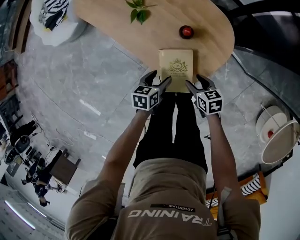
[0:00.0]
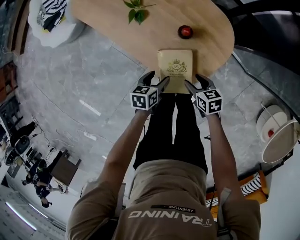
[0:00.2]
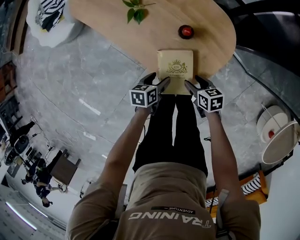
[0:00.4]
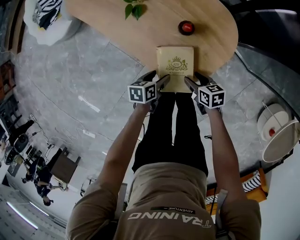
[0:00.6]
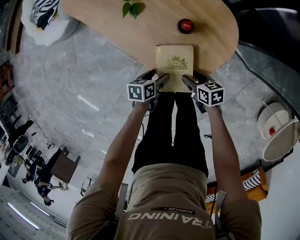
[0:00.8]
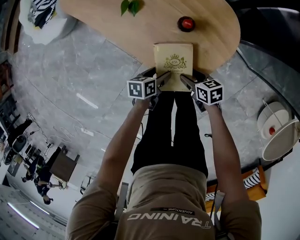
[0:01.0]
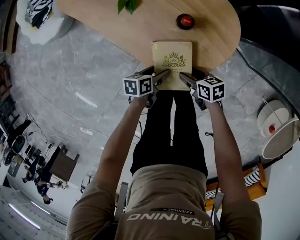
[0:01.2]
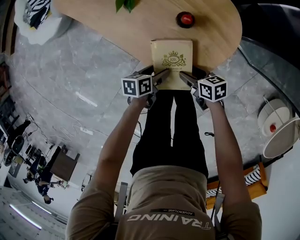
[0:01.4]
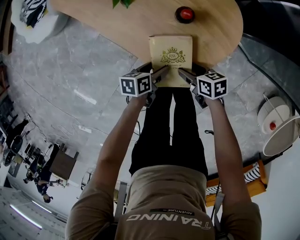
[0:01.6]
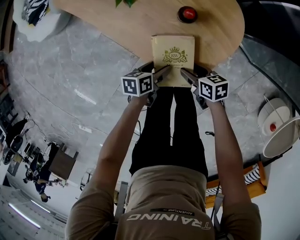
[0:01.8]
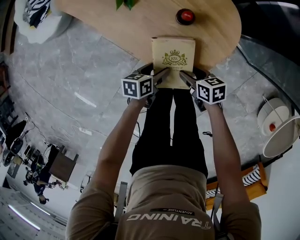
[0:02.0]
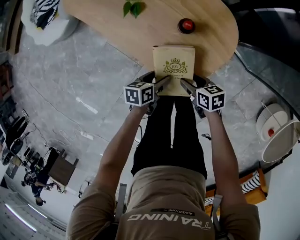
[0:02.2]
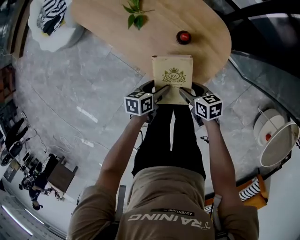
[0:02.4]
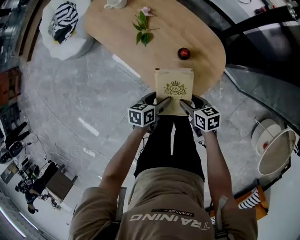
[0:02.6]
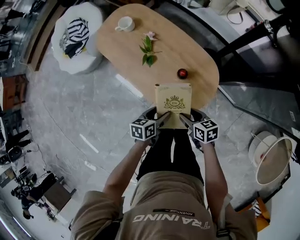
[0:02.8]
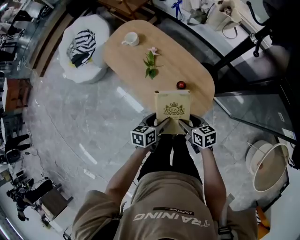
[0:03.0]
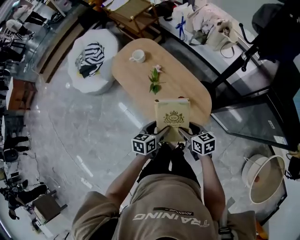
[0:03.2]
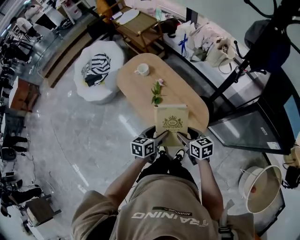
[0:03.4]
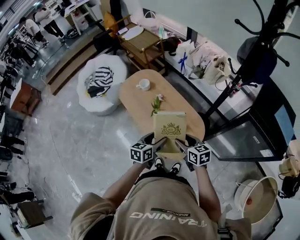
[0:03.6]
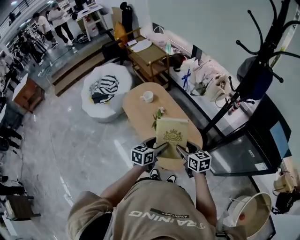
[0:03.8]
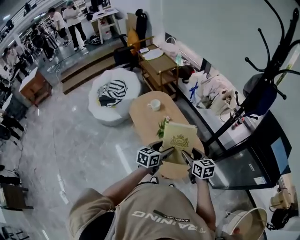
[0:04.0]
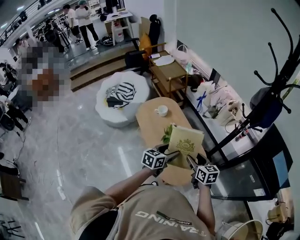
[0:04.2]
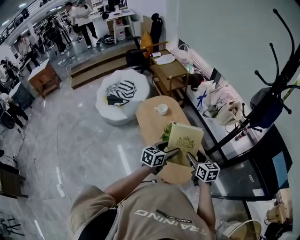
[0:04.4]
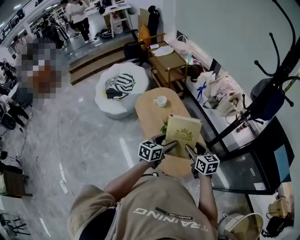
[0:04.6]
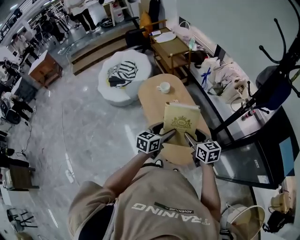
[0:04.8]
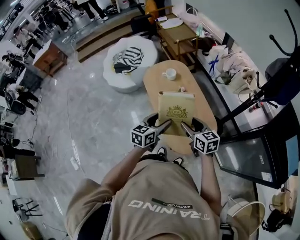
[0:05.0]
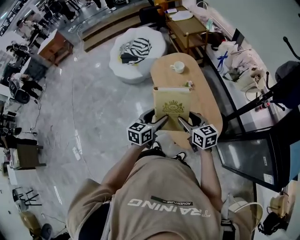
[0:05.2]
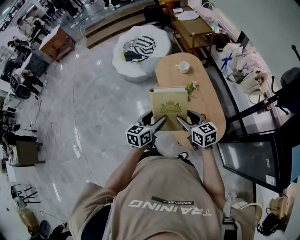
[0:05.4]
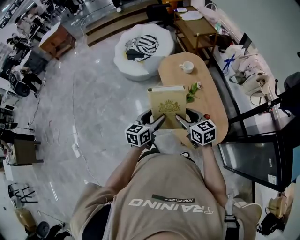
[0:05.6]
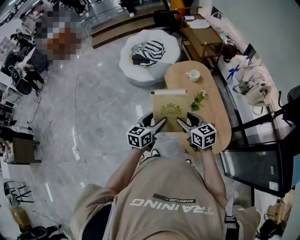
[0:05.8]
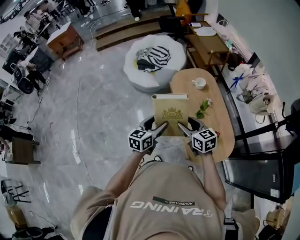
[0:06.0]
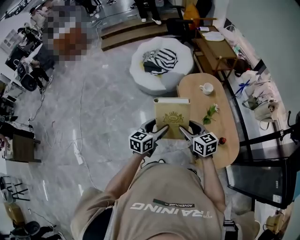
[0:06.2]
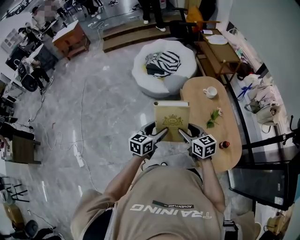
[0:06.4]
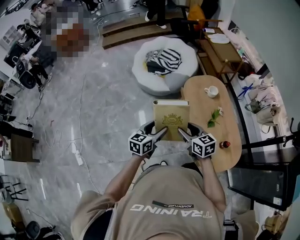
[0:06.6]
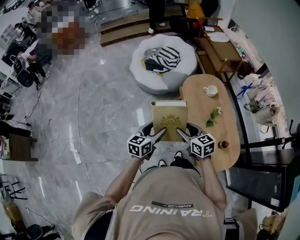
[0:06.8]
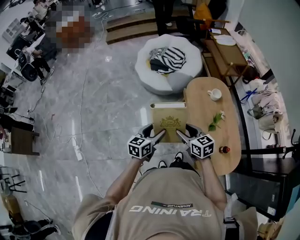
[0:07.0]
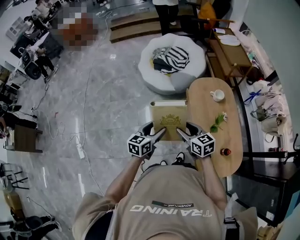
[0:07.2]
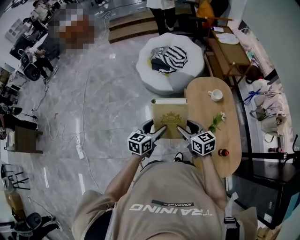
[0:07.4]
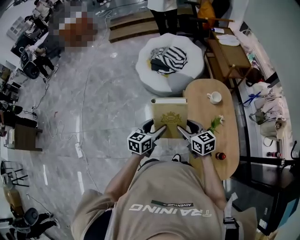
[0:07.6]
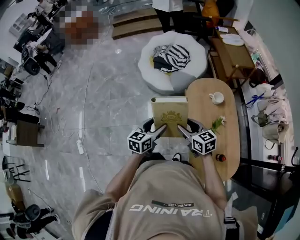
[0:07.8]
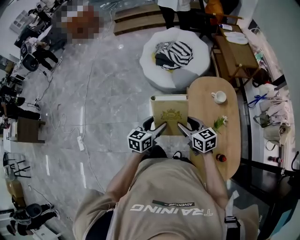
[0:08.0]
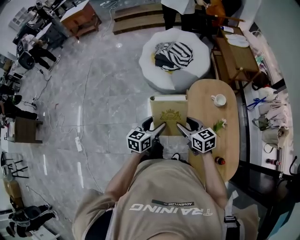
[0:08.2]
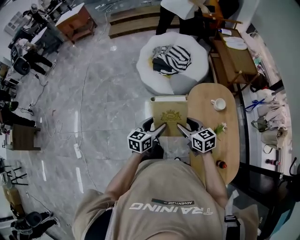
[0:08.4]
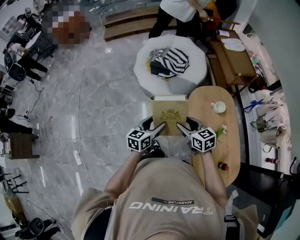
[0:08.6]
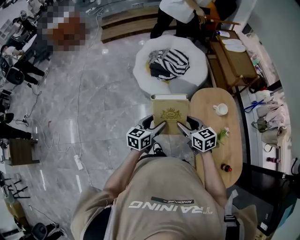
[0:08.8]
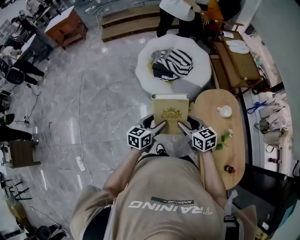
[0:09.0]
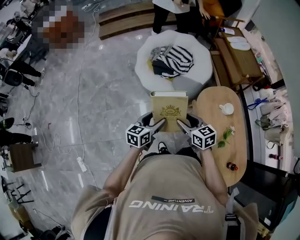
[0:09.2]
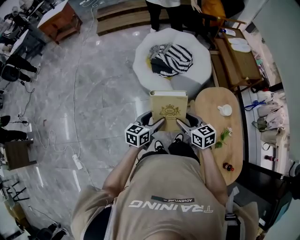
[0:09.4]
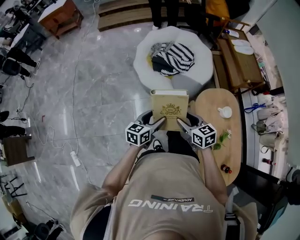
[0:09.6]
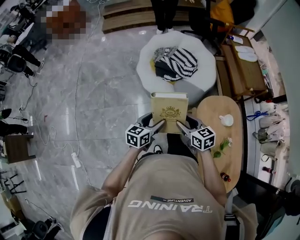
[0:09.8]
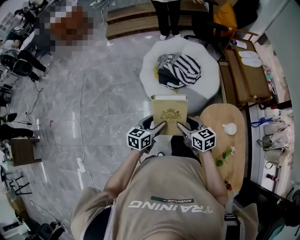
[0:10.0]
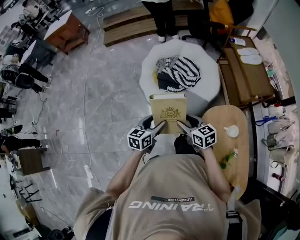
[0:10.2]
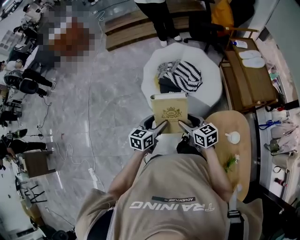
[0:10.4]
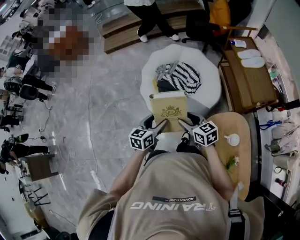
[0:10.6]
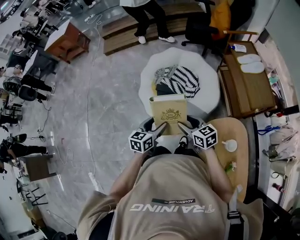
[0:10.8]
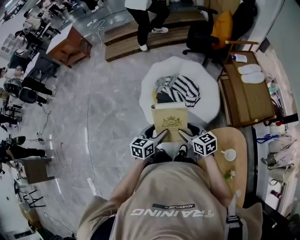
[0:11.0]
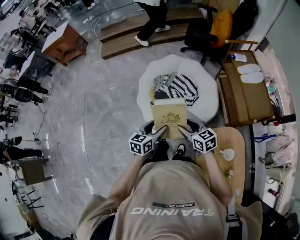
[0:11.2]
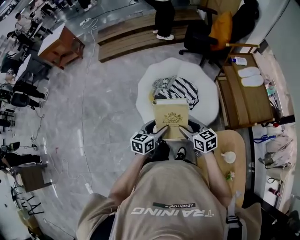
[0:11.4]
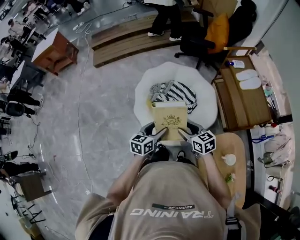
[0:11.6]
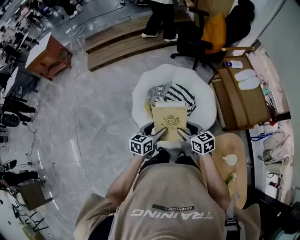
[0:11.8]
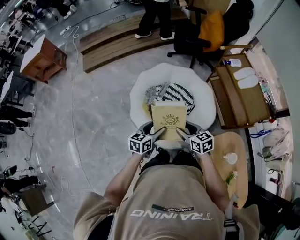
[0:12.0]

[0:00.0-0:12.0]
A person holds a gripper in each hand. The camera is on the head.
0:00.0 to 0:01.6: The grippers both shift downward by approximately 5 cm.
0:01.6 to 0:03.0: Both grippers travel together upward, roughly 25 cm. The right gripper swivels about 20 degrees. Meanwhile the left gripper swivels some 20 degrees.
0:03.0 to 0:04.4: The grippers both shift upward by roughly 20 cm. The left gripper rotates approximately 20 degrees. The right gripper swivels about 20 degrees.
0:04.4 to 0:06.0: The right gripper moves some 30 cm, and rotates some 30 degrees. Meanwhile the left gripper ends up roughly 30 cm from where it was, and changes its angle by approximately 30 degrees.
0:06.0 to 0:07.6: The left gripper goes approximately 15 cm forward and to the left, while the right gripper is displaced forward by about 15 cm.
0:07.6 to 0:09.0: The two grippers go about 25 cm forward and to the left.
0:09.0 to 0:10.4: The grippers both shift forward by some 25 cm.
0:10.4 to 0:12.0: The grippers both shift forward by about 25 cm.

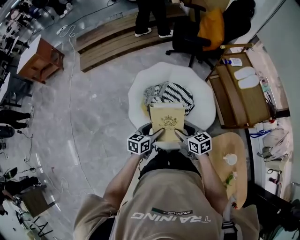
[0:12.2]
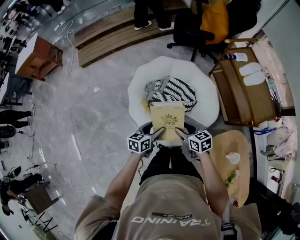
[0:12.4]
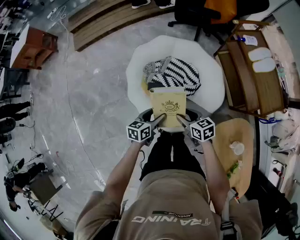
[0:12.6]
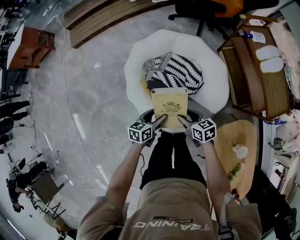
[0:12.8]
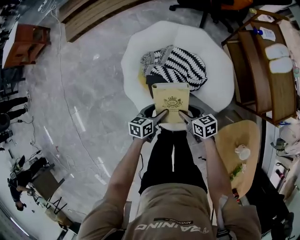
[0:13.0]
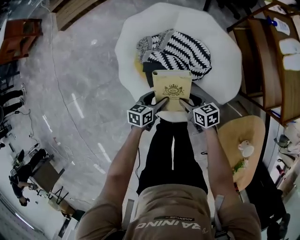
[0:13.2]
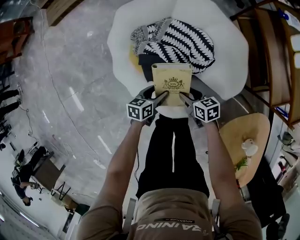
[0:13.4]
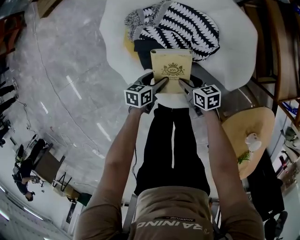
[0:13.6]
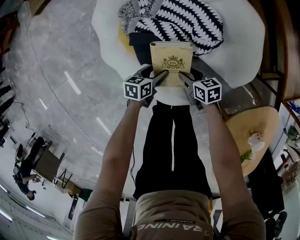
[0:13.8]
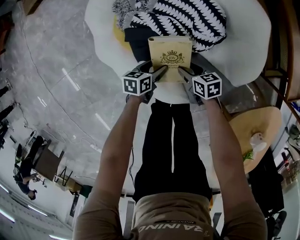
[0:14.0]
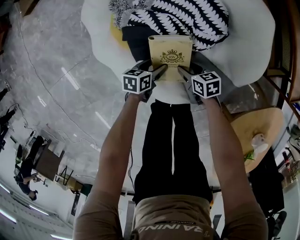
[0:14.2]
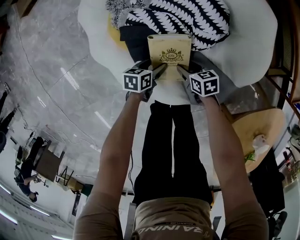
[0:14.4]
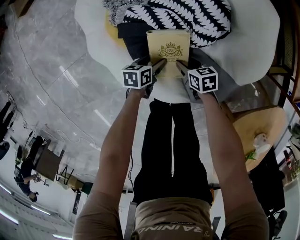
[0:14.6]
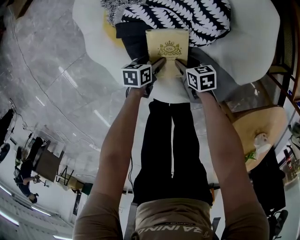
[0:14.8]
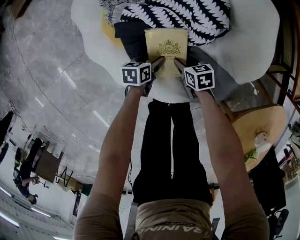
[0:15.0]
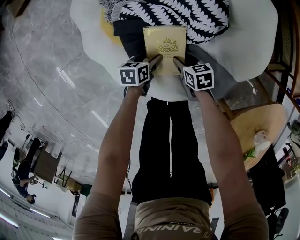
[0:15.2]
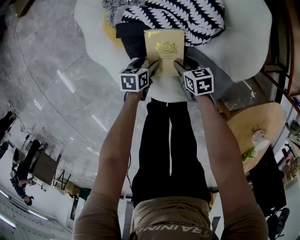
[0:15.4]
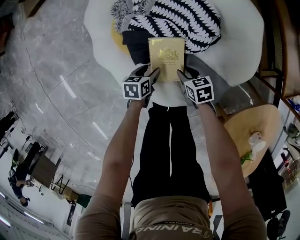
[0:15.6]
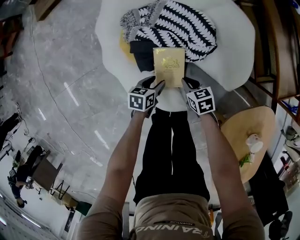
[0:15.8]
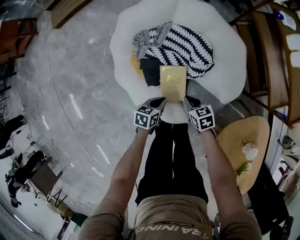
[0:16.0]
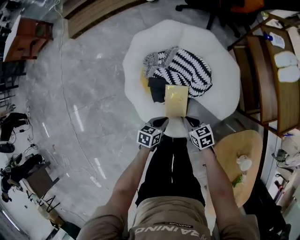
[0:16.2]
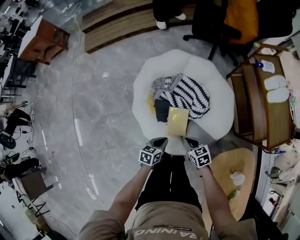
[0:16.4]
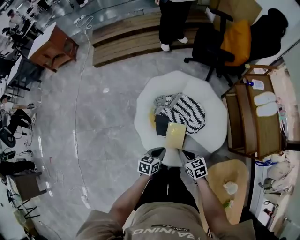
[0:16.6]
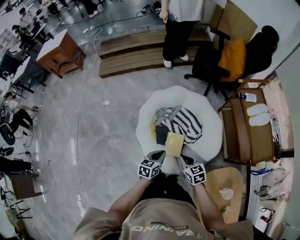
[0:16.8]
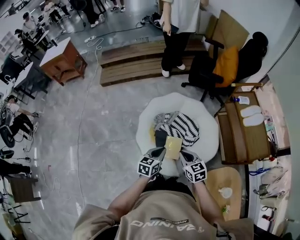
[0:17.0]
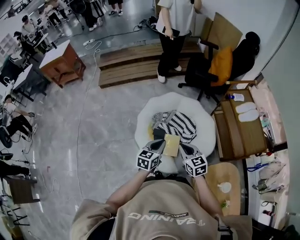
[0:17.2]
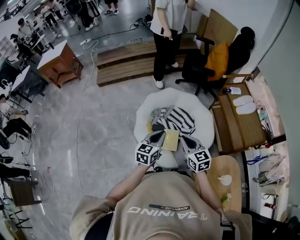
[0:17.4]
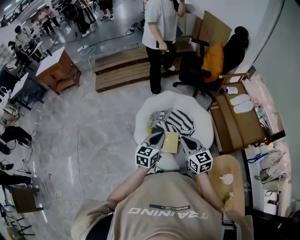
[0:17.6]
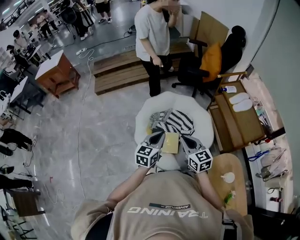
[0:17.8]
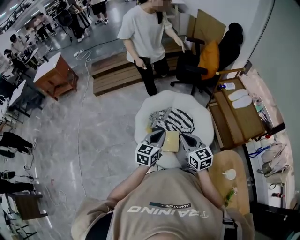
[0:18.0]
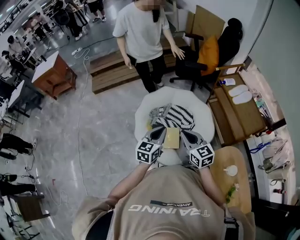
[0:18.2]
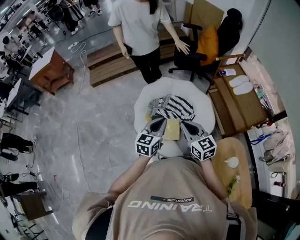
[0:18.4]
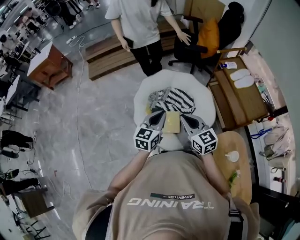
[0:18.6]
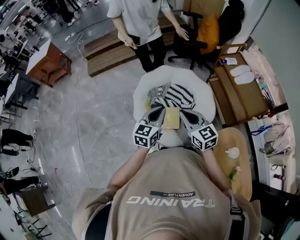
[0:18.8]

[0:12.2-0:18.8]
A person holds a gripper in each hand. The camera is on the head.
0:12.2 to 0:13.8: The two grippers go about 40 cm downward. The right gripper rotates some 20 degrees. The left gripper swivels some 30 degrees.
0:13.8 to 0:15.4: The grippers both shift downward by approximately 10 cm.
0:15.4 to 0:17.2: Both grippers move upward, approximately 60 cm. The left gripper angles its fingers upward, by approximately 30 degrees, and closes its fingers; the right gripper changes its angle by approximately 40 degrees, and closes its fingers.
0:17.2 to 0:18.8: Both grippers travel together upward, roughly 10 cm.

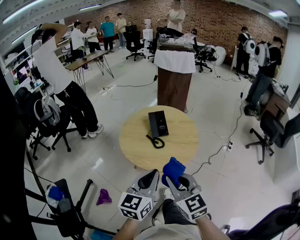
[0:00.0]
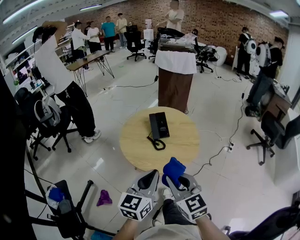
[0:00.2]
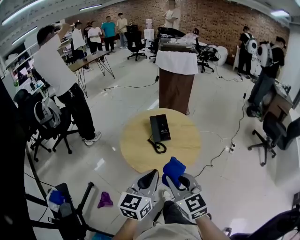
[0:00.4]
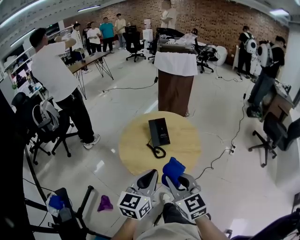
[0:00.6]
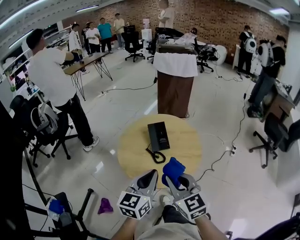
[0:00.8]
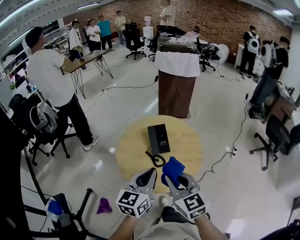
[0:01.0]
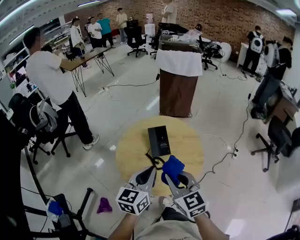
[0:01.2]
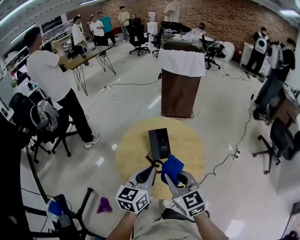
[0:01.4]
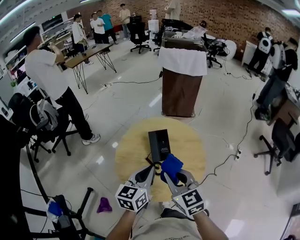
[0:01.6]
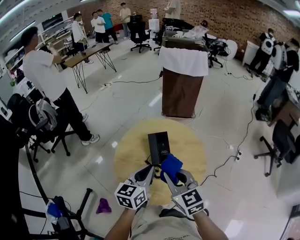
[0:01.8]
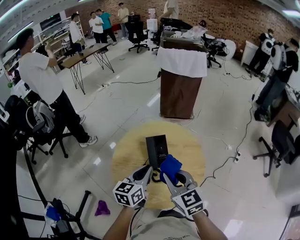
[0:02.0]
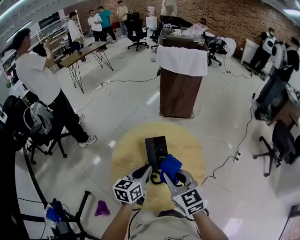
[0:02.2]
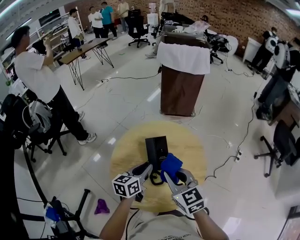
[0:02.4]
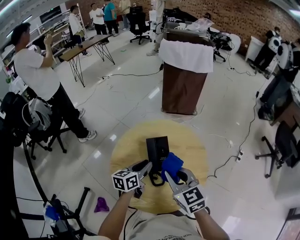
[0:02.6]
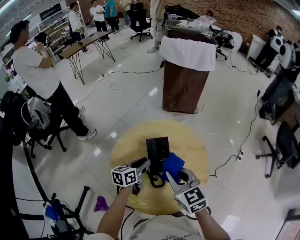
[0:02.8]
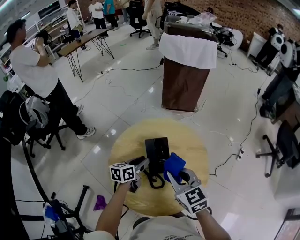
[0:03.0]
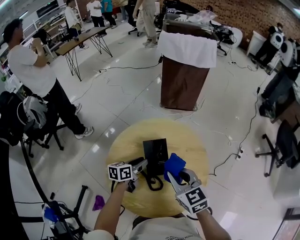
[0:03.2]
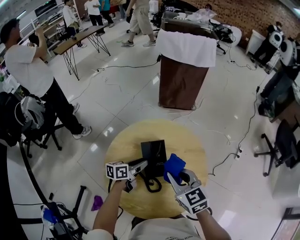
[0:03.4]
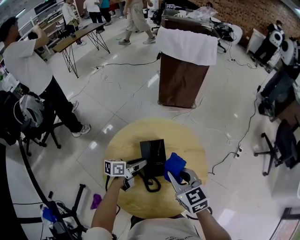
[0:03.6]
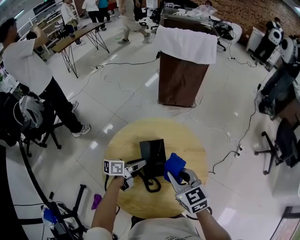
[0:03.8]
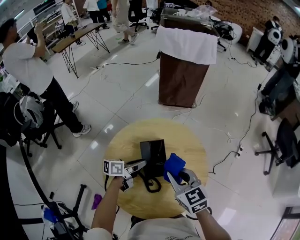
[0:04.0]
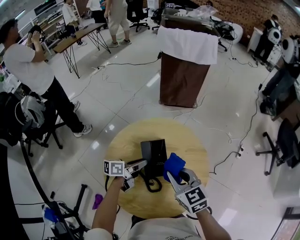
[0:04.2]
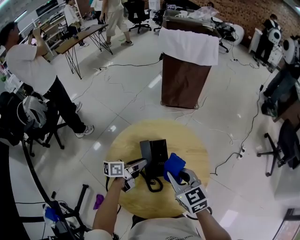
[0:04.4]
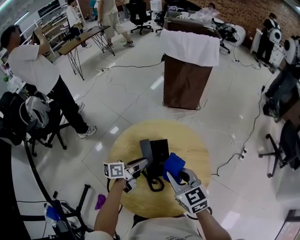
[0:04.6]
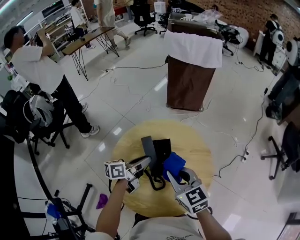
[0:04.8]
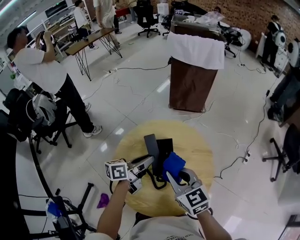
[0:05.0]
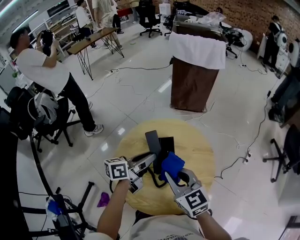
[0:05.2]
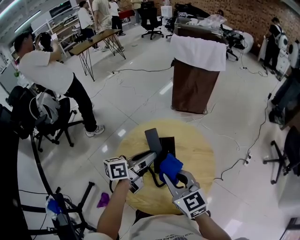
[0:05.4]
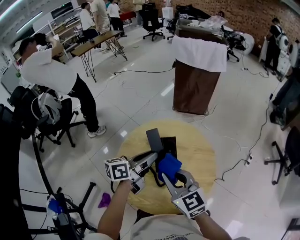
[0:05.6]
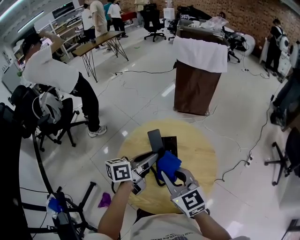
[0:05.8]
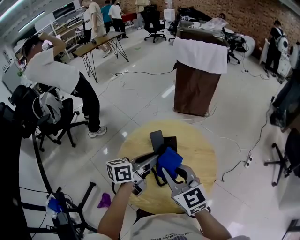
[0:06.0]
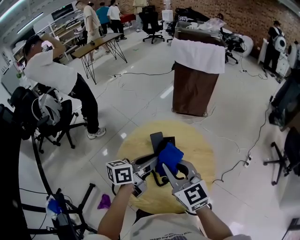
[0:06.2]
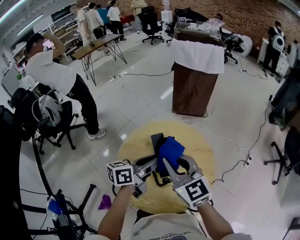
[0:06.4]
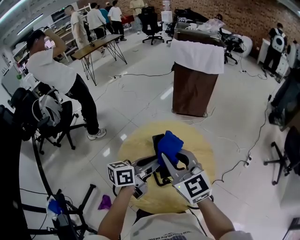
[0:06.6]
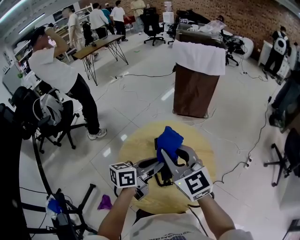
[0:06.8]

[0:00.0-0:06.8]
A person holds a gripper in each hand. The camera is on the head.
0:00.0 to 0:01.4: The two grippers go about 20 cm forward.
0:01.4 to 0:02.8: The left gripper heads forward and downward, covering about 25 cm, swivels approximately 20 degrees, and opens up, while the right gripper goes about 15 cm forward and downward.
0:02.8 to 0:04.0: The left gripper goes approximately 5 cm downward, and rotates approximately 30 degrees. Meanwhile the right gripper changes place by about 5 cm.
0:04.0 to 0:05.4: The right gripper is displaced upward by some 5 cm. Meanwhile the left gripper goes some 15 cm upward, and changes its angle by approximately 20 degrees.
0:05.4 to 0:06.8: The left gripper ends up roughly 5 cm from where it was. Meanwhile the right gripper moves upward, some 10 cm.
